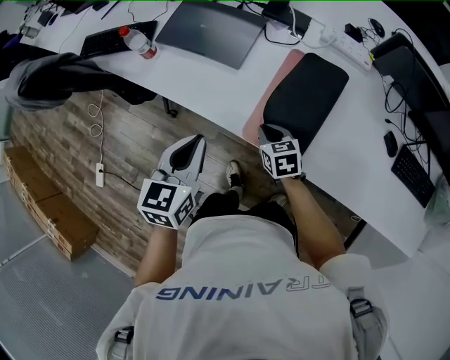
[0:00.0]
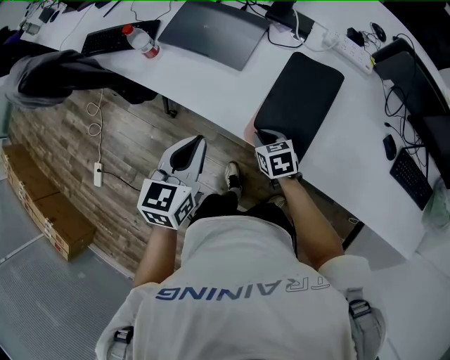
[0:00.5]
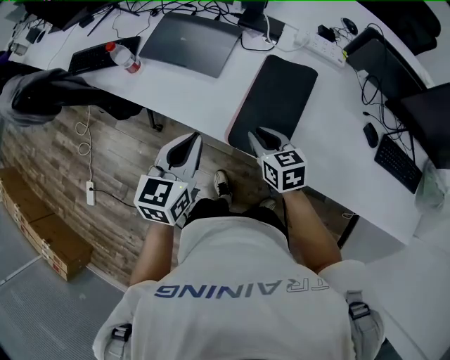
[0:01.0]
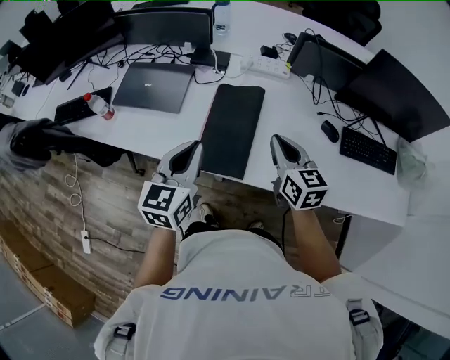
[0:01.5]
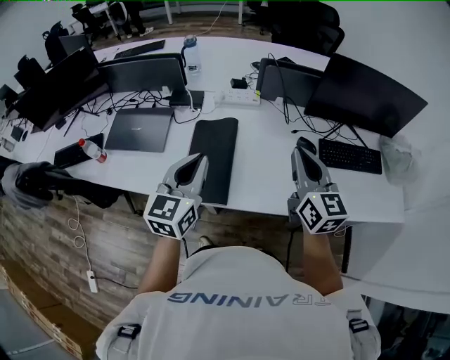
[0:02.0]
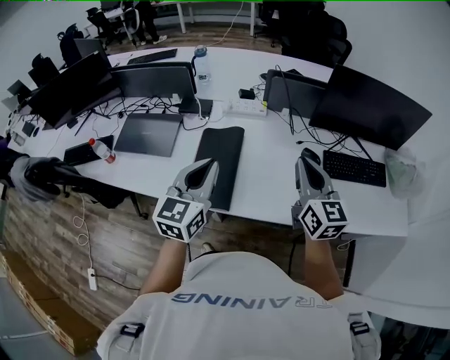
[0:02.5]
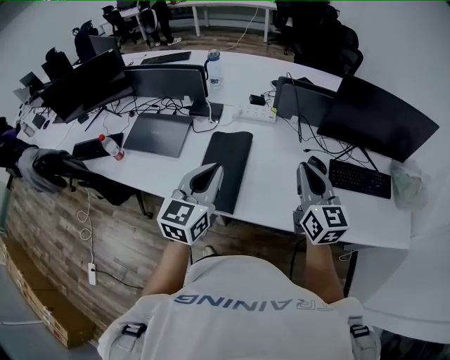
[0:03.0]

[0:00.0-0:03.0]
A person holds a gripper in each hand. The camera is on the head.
0:00.0 to 0:01.5: The left gripper goes about 15 cm to the right and upward. The right gripper shifts approximately 30 cm upward and to the right, and rotates roughly 40 degrees.
0:01.5 to 0:03.0: The grippers both shift to the right and upward by approximately 15 cm.

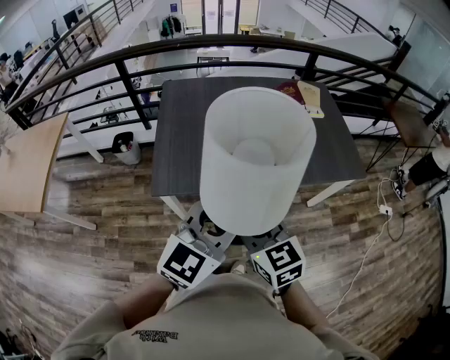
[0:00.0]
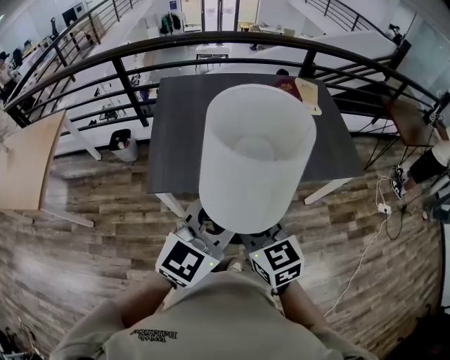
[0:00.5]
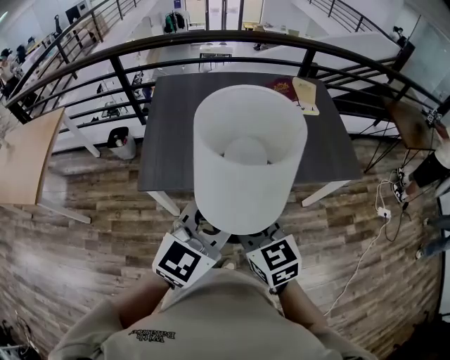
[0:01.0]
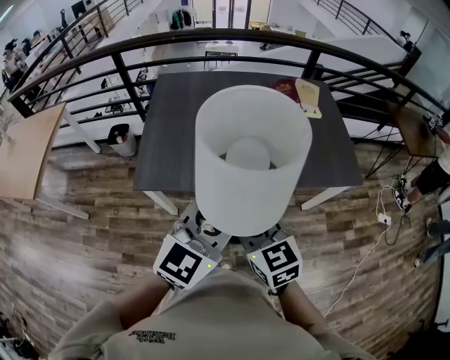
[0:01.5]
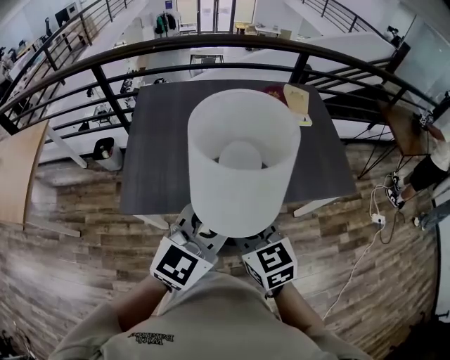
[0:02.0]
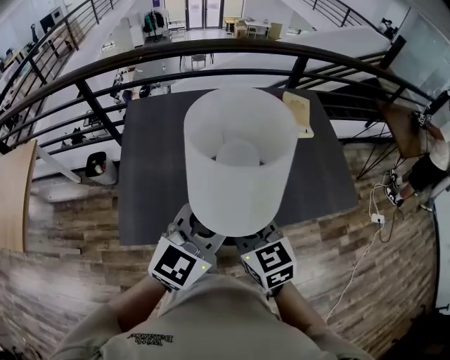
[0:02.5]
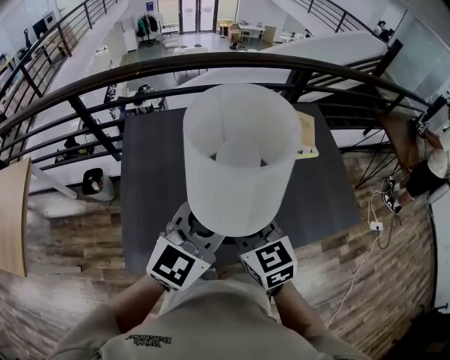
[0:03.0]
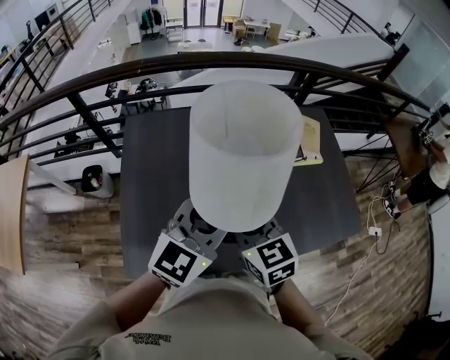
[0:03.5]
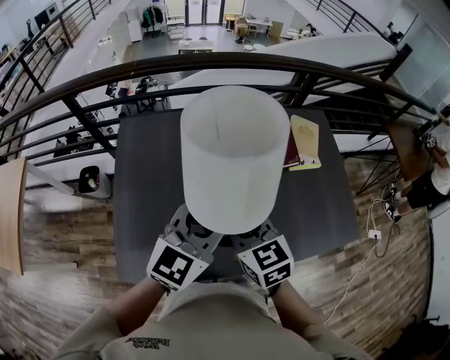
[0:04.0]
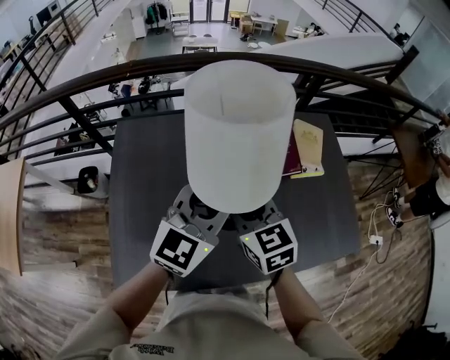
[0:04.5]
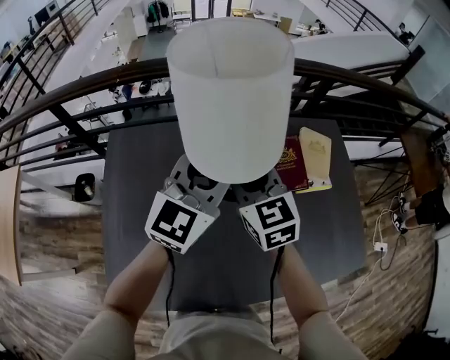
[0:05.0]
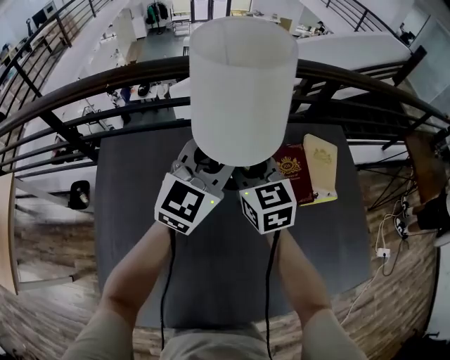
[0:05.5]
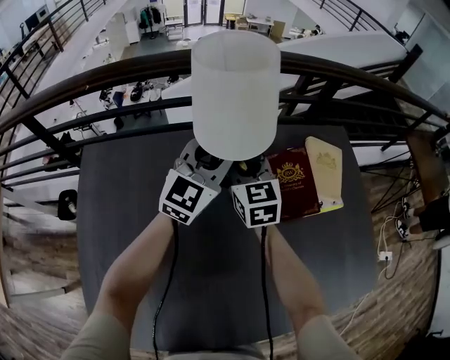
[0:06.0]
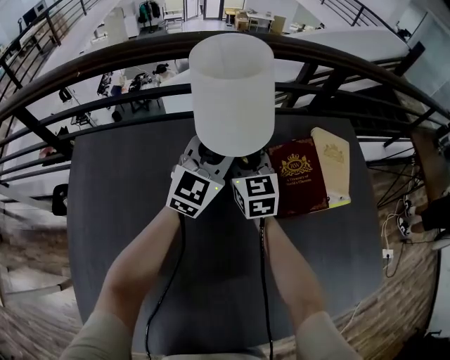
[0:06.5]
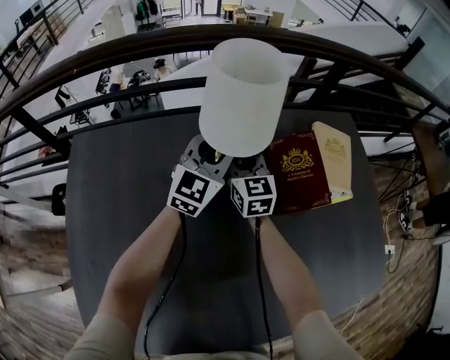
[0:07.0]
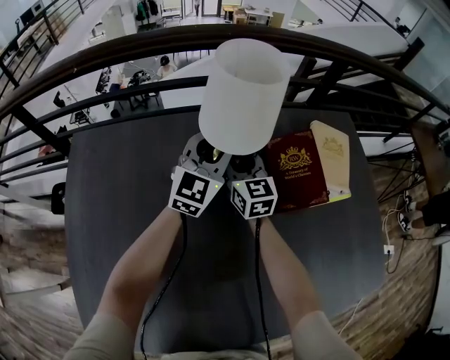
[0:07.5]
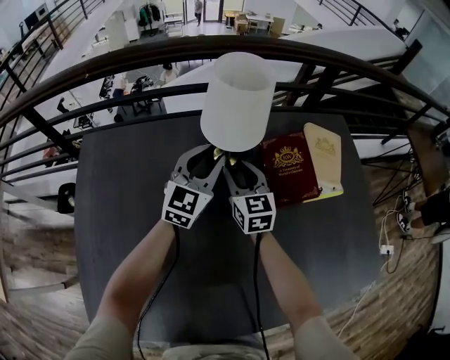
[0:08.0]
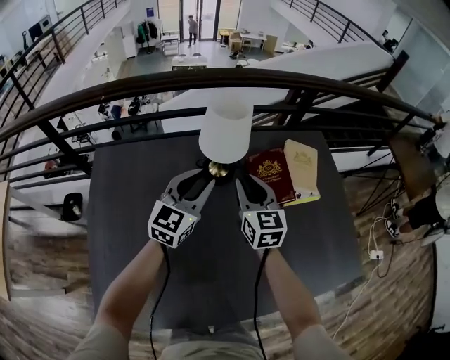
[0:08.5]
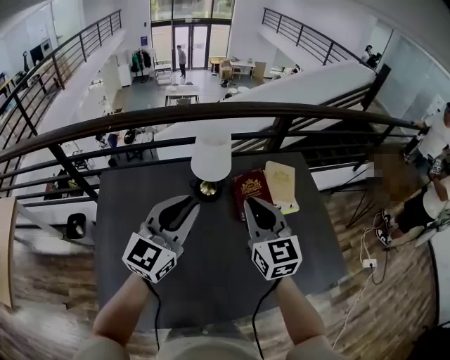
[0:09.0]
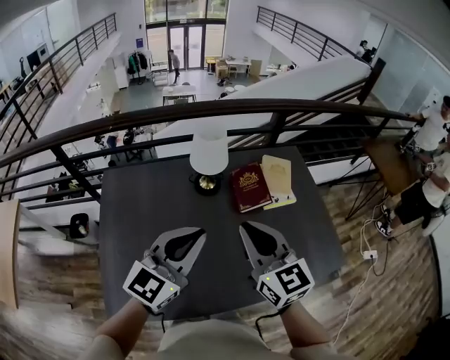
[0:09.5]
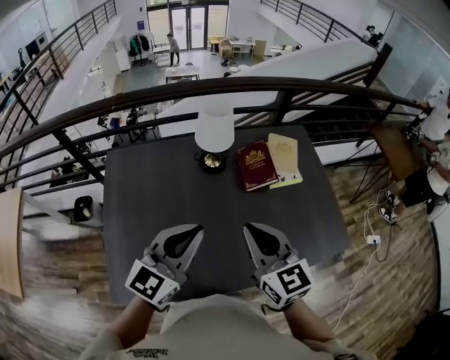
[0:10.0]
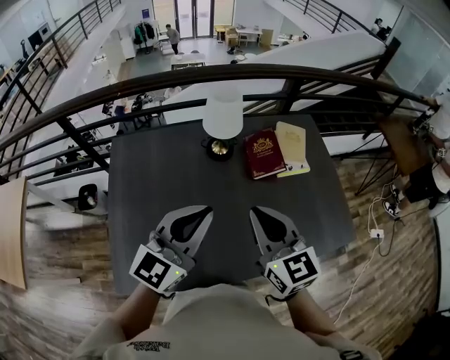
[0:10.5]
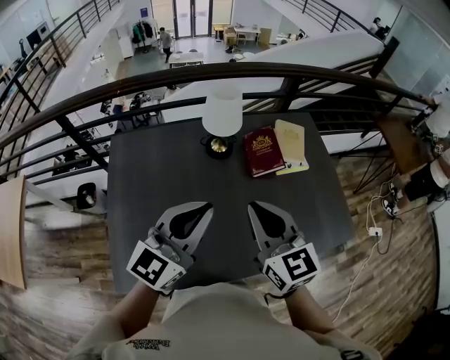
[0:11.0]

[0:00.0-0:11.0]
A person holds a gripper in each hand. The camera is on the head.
0:00.0 to 0:02.0: Both grippers travel together forward and to the right, approximately 15 cm.
0:02.0 to 0:03.5: Both grippers move forward, approximately 30 cm.
0:03.5 to 0:05.5: The grippers both shift forward by approximately 35 cm.
0:05.5 to 0:07.5: The left gripper goes roughly 20 cm downward and forward. The right gripper goes approximately 20 cm downward.
0:07.5 to 0:09.0: Both grippers travel together upward and backward, approximately 40 cm. The right gripper closes.
0:09.0 to 0:11.0: The grippers both shift backward by some 15 cm.

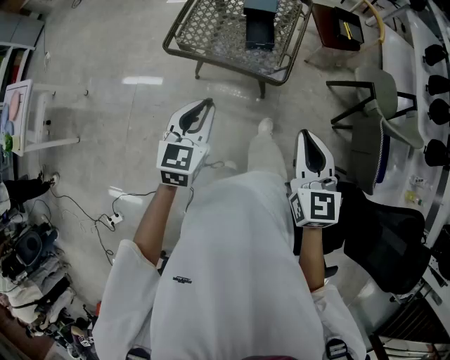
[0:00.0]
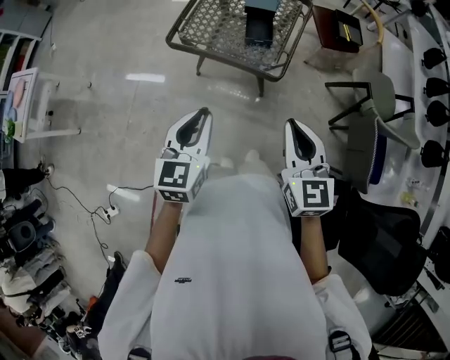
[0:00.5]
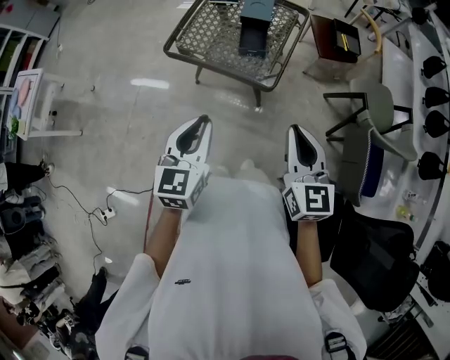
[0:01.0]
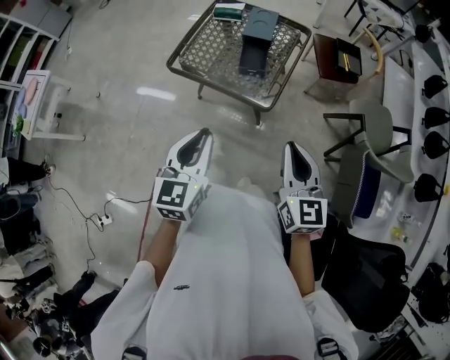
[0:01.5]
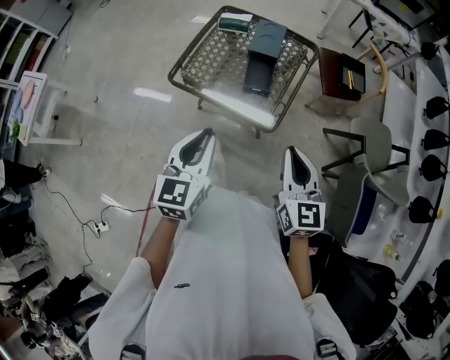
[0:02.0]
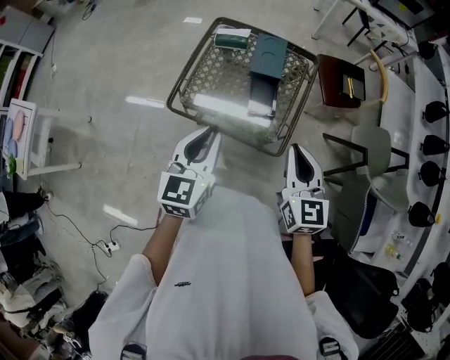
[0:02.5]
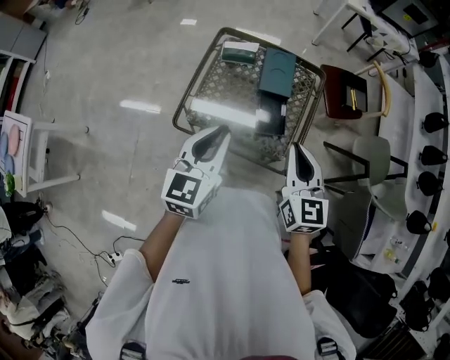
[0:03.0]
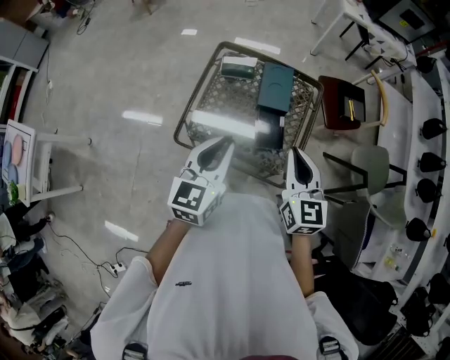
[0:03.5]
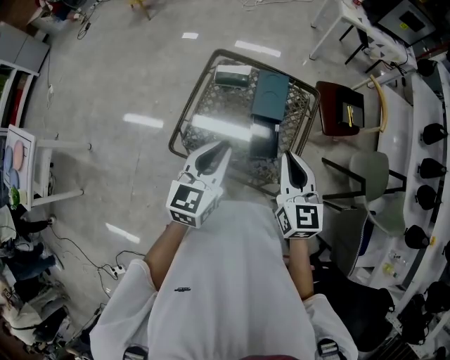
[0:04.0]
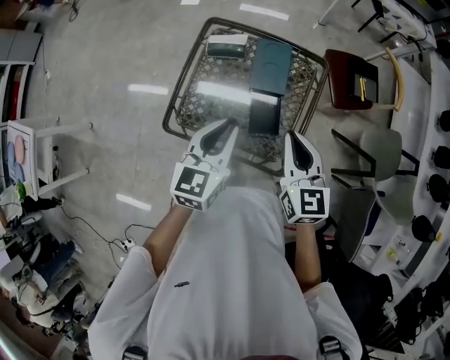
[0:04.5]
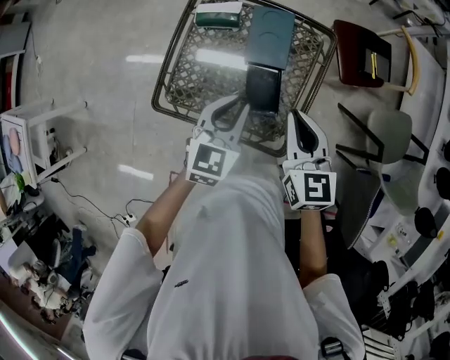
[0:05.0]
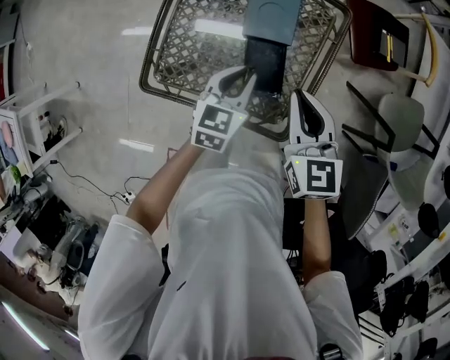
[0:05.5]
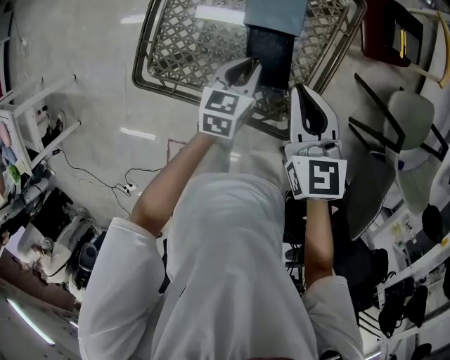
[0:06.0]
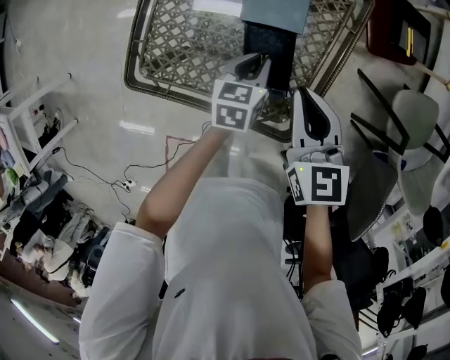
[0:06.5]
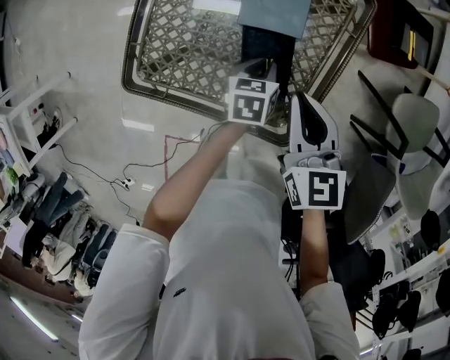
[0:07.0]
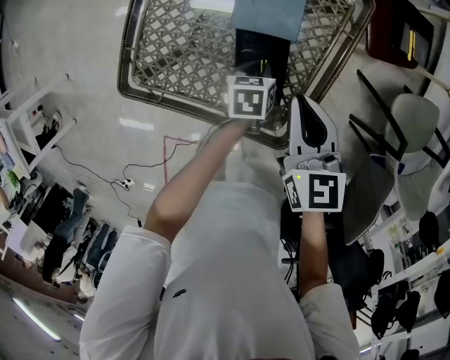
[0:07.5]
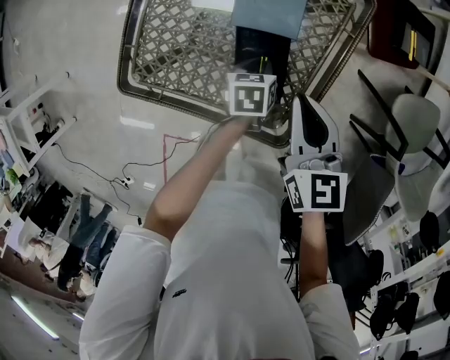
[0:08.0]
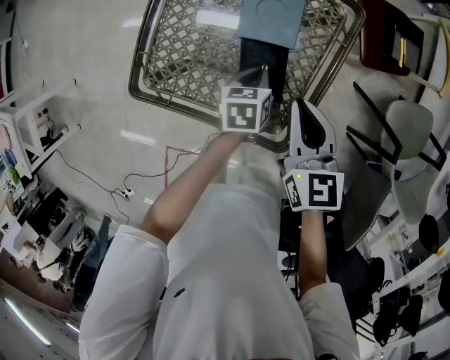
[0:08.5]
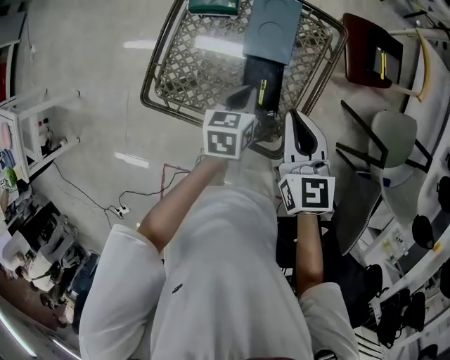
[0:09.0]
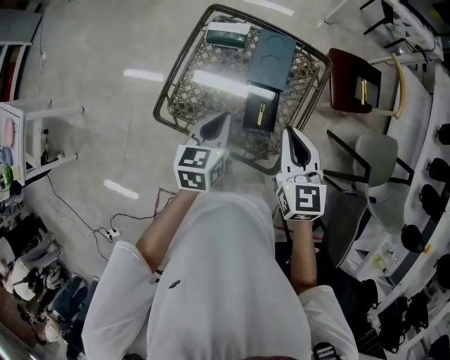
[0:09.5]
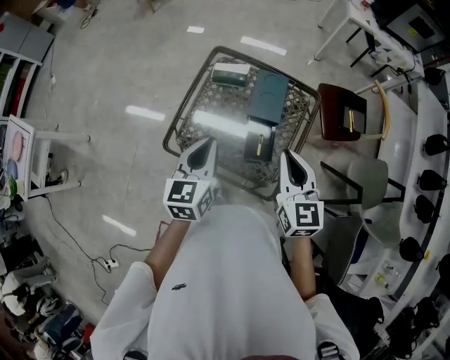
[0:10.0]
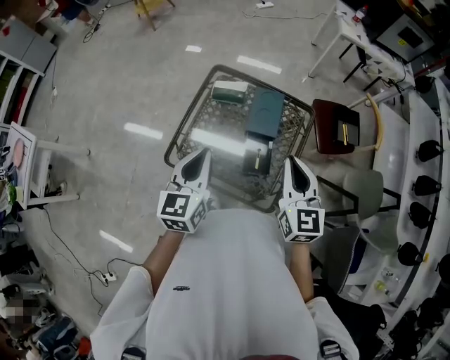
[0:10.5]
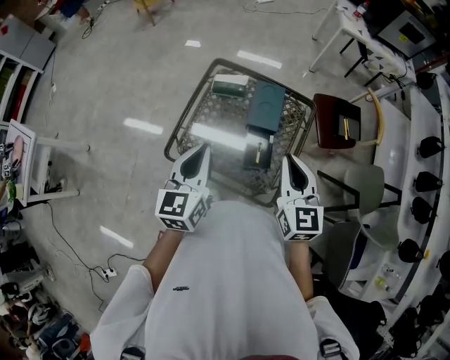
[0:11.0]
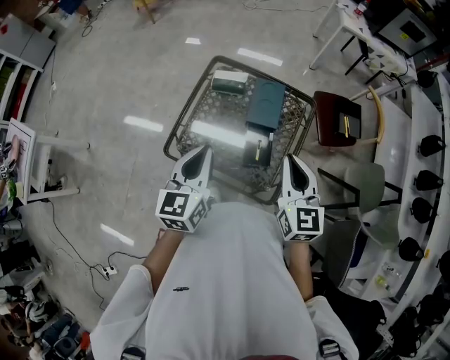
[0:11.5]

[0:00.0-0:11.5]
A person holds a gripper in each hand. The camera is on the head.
0:00.0 to 0:02.0: The right gripper goes roughly 10 cm forward, while the left gripper is displaced forward, upward and to the right by approximately 10 cm.
0:02.0 to 0:04.0: The left gripper moves forward, about 30 cm. The right gripper moves forward and to the left, approximately 30 cm.
0:04.0 to 0:06.0: The left gripper moves downward, roughly 30 cm, and swivels some 20 degrees, while the right gripper travels downward and forward by about 20 cm.
0:06.0 to 0:07.5: The right gripper shifts some 5 cm downward, while the left gripper moves downward, approximately 10 cm, and turns by roughly 30 degrees.
0:07.5 to 0:09.5: The right gripper shifts about 15 cm upward. The left gripper shifts about 30 cm upward and to the left, and turns by some 30 degrees.
0:09.5 to 0:11.5: The left gripper shifts about 15 cm upward and to the left, while the right gripper shifts about 10 cm upward.

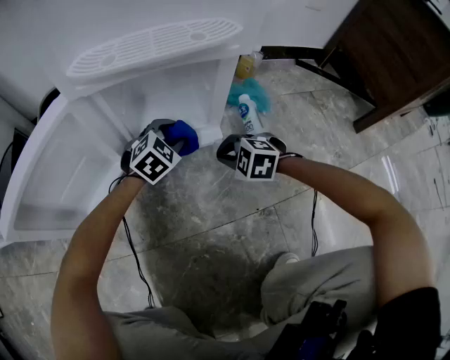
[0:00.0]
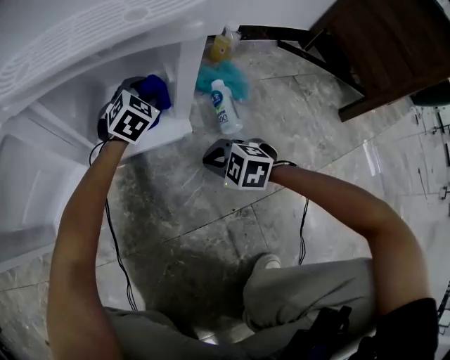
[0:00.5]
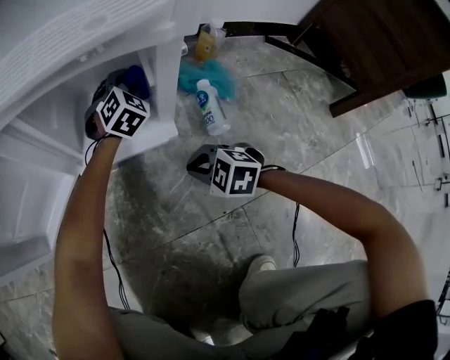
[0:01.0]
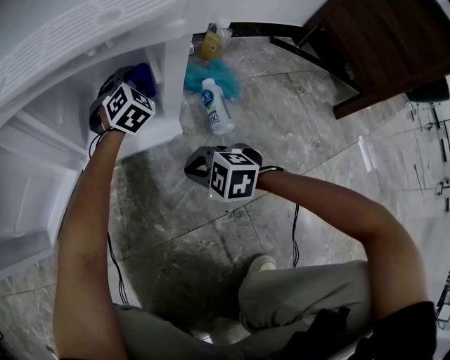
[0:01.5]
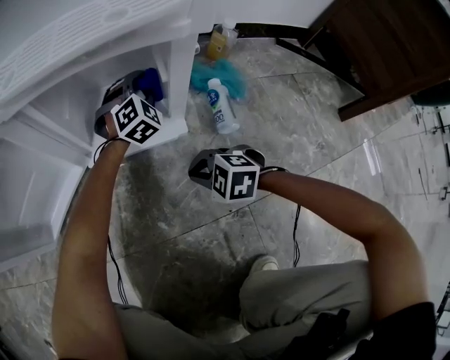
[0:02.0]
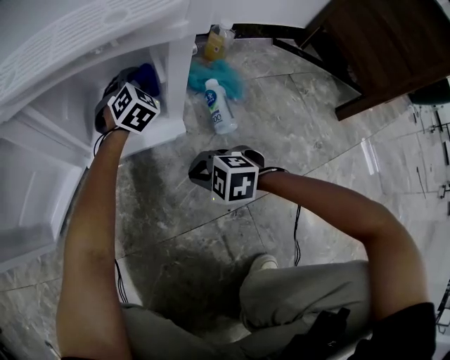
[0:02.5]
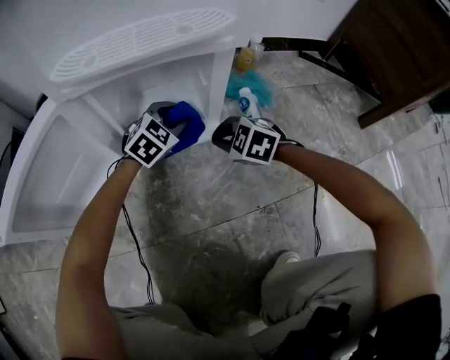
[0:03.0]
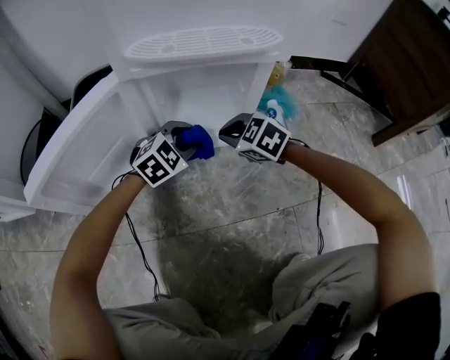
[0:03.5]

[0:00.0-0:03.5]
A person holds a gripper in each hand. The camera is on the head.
0:00.0 to 0:02.0: The left gripper is displaced forward and to the right by about 15 cm, and swivels about 30 degrees.
0:02.0 to 0:03.5: The right gripper moves roughly 15 cm, while the left gripper moves about 20 cm, and swivels roughly 30 degrees.
